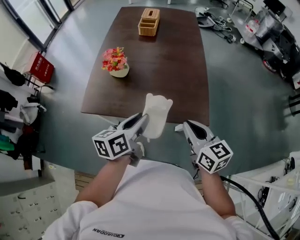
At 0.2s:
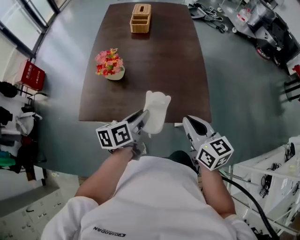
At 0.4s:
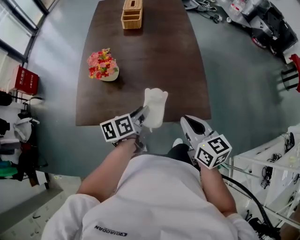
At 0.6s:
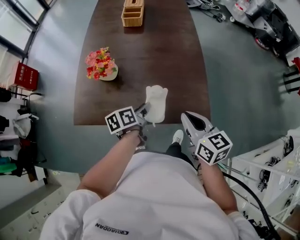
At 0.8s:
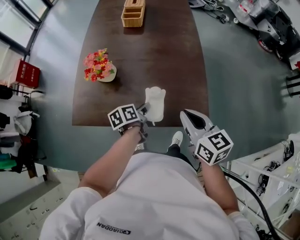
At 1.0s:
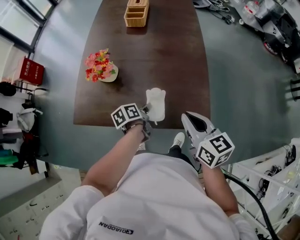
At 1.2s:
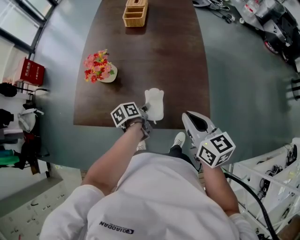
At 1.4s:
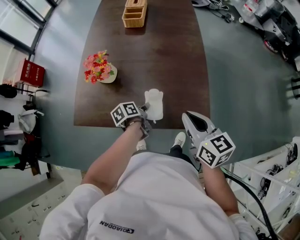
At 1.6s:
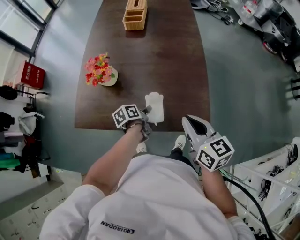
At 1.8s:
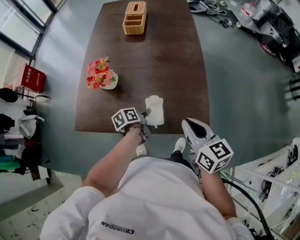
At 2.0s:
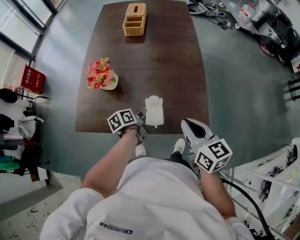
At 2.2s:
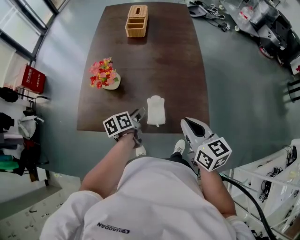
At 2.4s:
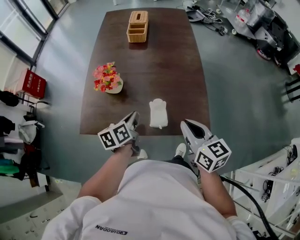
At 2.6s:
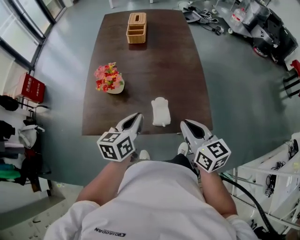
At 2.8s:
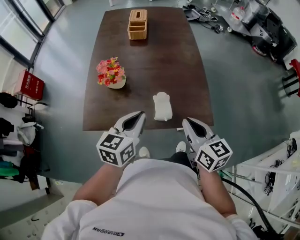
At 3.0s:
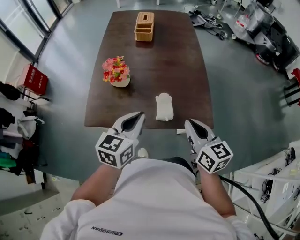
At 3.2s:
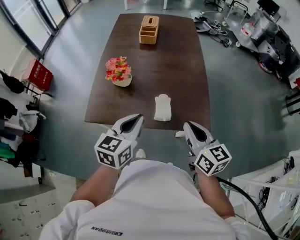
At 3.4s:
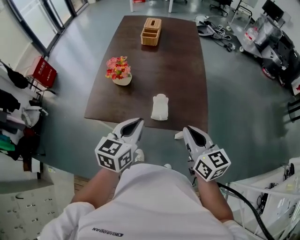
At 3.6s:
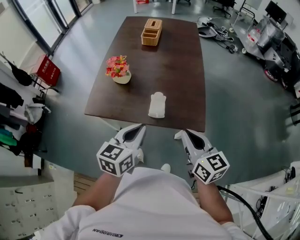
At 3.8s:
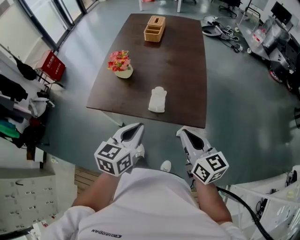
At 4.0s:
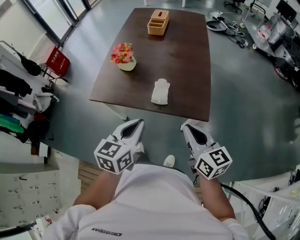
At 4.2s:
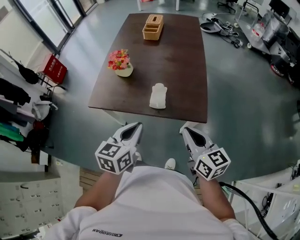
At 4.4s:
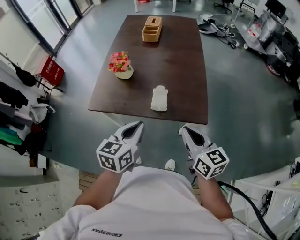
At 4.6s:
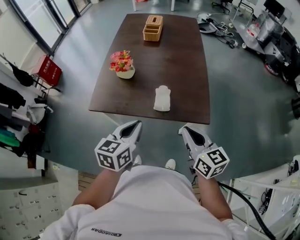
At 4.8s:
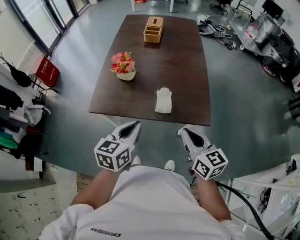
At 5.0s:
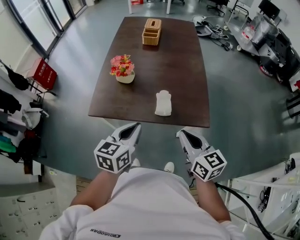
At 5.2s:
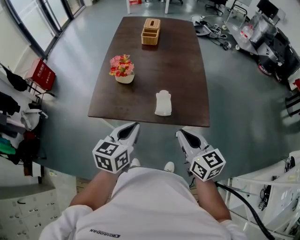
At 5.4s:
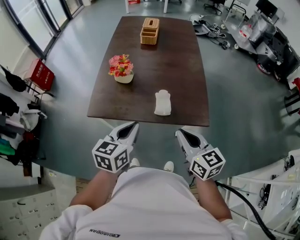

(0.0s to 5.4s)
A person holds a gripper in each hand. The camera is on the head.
0.0s - 1.4s: The left gripper heads downward and forward, covering some 25 cm, and rotates roughly 40 degrees; the right gripper goes approximately 10 cm forward.
1.4s - 2.8s: The right gripper moves some 5 cm; the left gripper is displaced upward by about 25 cm, twists roughly 60 degrees clockwise, seen from behind, and closes.
2.8s - 4.0s: The right gripper travels backward and to the right by about 10 cm; the left gripper shifts approximately 15 cm backward.
4.0s - 5.4s: Both grippers travel together to the left, some 10 cm.

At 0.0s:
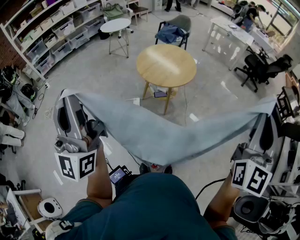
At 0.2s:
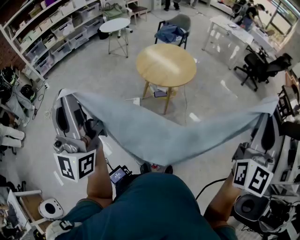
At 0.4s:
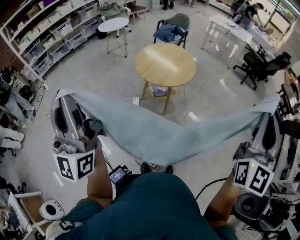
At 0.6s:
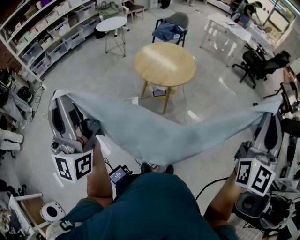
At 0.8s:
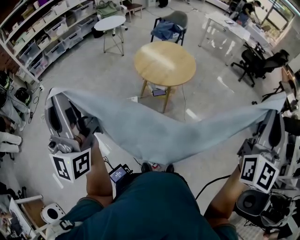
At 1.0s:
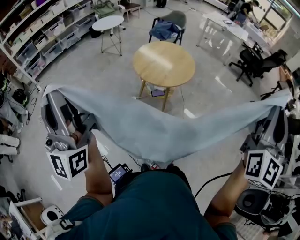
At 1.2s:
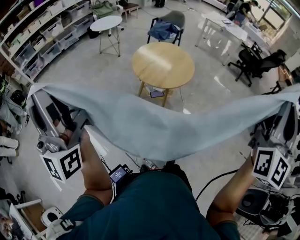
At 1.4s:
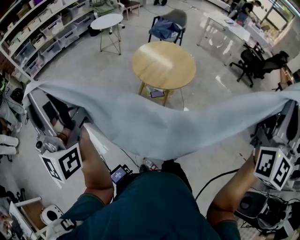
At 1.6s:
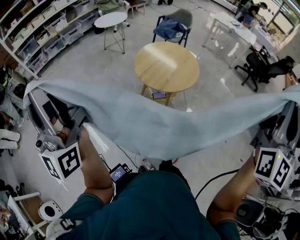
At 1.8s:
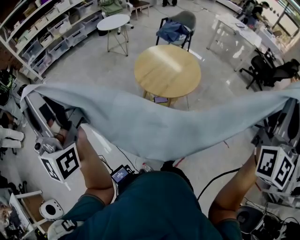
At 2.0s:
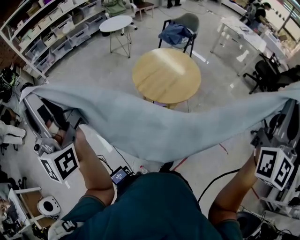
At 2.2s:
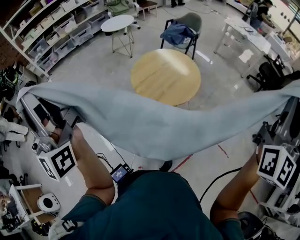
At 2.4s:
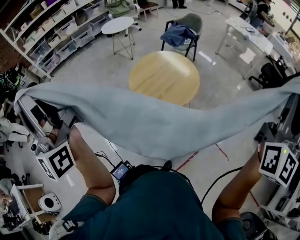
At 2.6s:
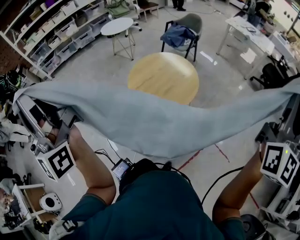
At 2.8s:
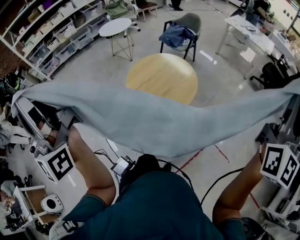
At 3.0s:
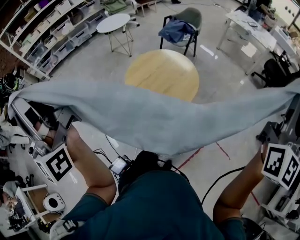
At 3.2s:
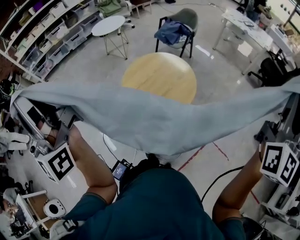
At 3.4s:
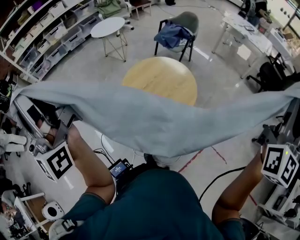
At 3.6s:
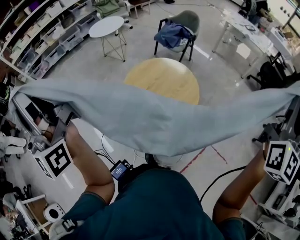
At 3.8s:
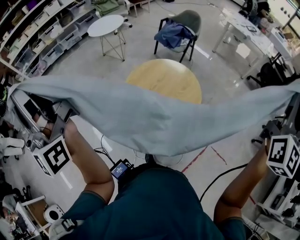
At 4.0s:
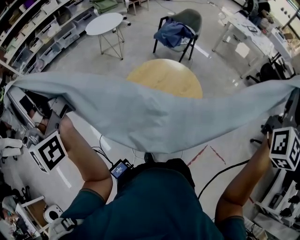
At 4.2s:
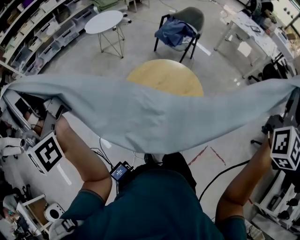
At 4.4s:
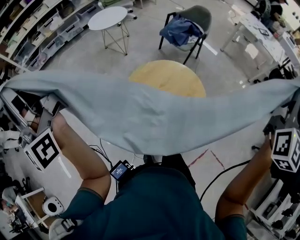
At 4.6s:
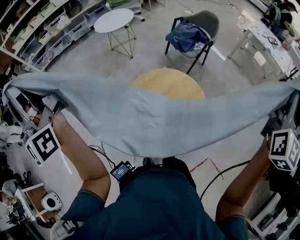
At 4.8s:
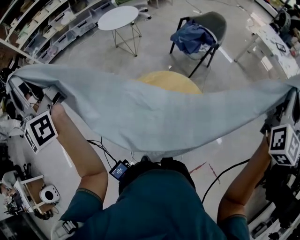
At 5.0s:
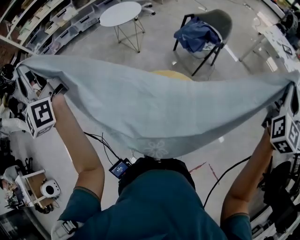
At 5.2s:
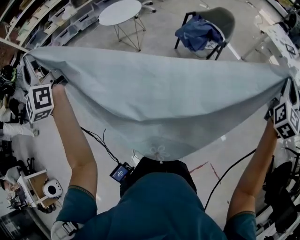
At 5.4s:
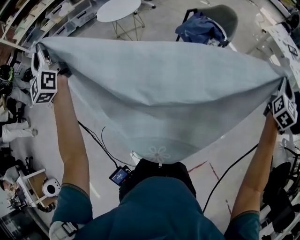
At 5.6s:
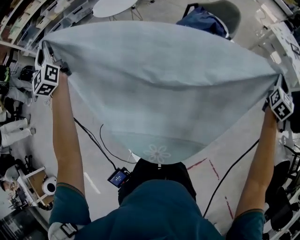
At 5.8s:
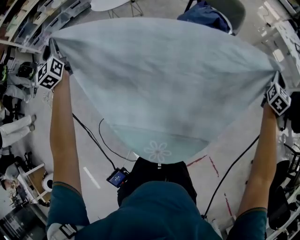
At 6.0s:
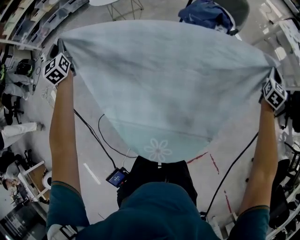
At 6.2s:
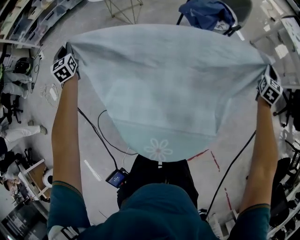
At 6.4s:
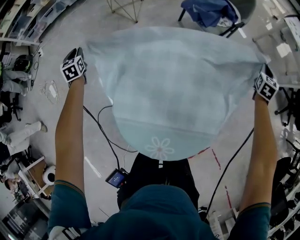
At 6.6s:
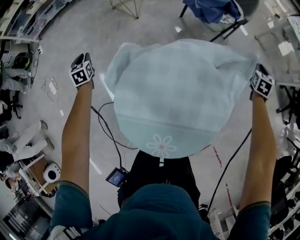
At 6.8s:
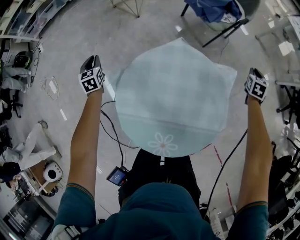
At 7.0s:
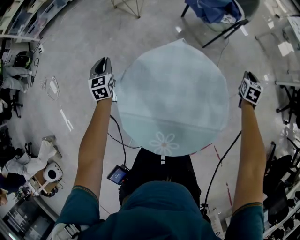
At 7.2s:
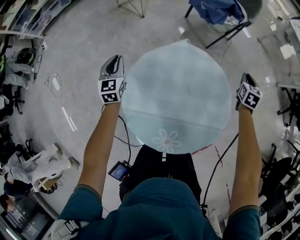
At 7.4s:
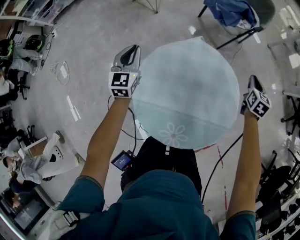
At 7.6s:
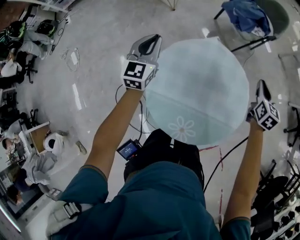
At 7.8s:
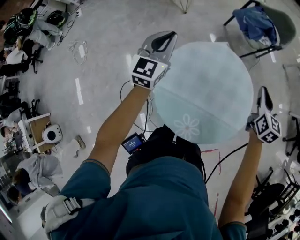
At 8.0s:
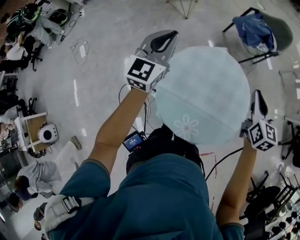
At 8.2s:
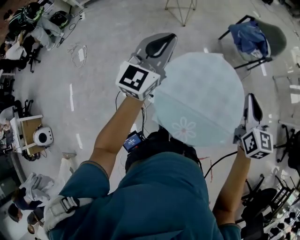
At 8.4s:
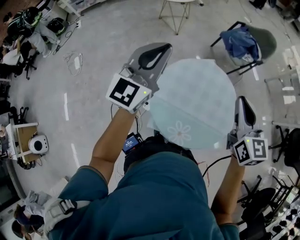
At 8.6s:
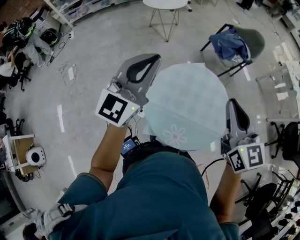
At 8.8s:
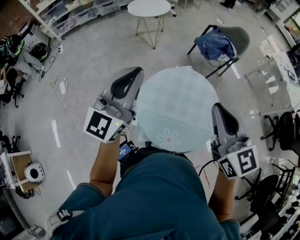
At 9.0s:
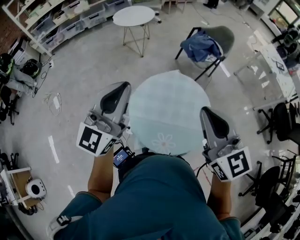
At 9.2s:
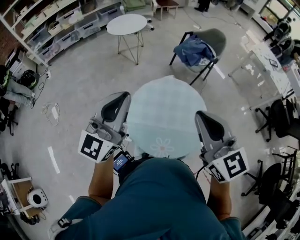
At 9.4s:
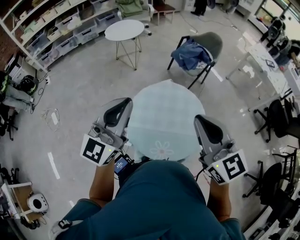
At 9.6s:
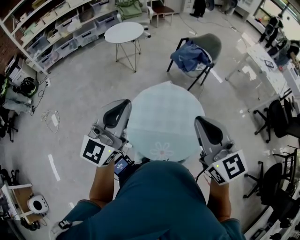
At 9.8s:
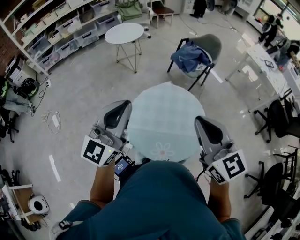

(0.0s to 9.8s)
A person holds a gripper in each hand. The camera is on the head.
0.0s - 1.4s: The right gripper travels forward and upward by approximately 10 cm, while the left gripper heads to the left and forward, covering roughly 10 cm.
1.4s - 2.8s: The right gripper is displaced forward and to the right by roughly 35 cm. The left gripper travels to the right and forward by approximately 25 cm.
2.8s - 4.2s: The left gripper travels forward and to the left by approximately 30 cm; the right gripper is displaced forward by roughly 30 cm.
4.2s - 5.6s: The two grippers travel together, forward, some 50 cm. Both grippers travel together downward, some 30 cm. The left gripper tilts its fingers roughly 40 degrees downward, while the right gripper tilts its fingers roughly 30 degrees downward.
5.6s - 7.0s: The right gripper is displaced downward and to the left by some 35 cm, and tilts its fingers about 30 degrees downward, while the left gripper goes about 40 cm downward, and angles its fingers downward, by about 40 degrees.
7.0s - 8.4s: The left gripper moves upward and backward, roughly 40 cm, and tilts its fingers approximately 30 degrees upward; the right gripper heads upward, to the left and backward, covering about 60 cm, and tilts its fingers some 30 degrees upward.
8.4s - 9.8s: The right gripper heads backward and upward, covering roughly 15 cm. The left gripper goes some 10 cm backward, to the right and upward.

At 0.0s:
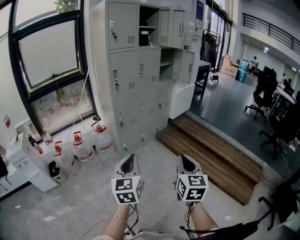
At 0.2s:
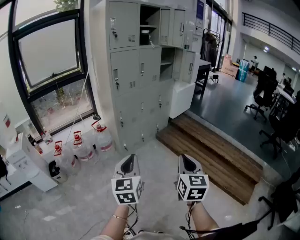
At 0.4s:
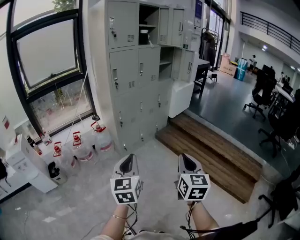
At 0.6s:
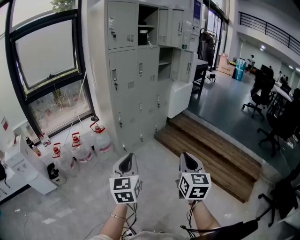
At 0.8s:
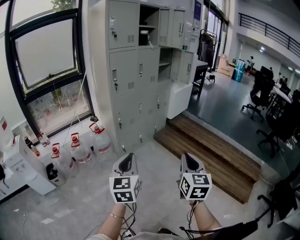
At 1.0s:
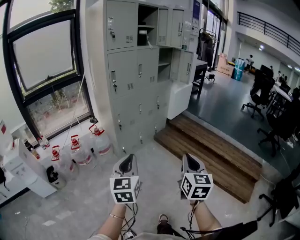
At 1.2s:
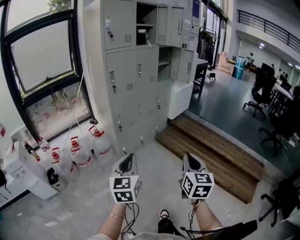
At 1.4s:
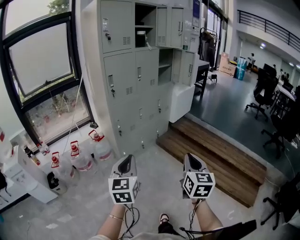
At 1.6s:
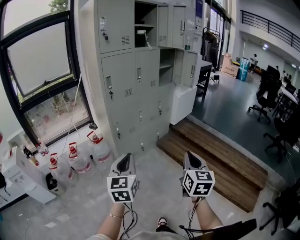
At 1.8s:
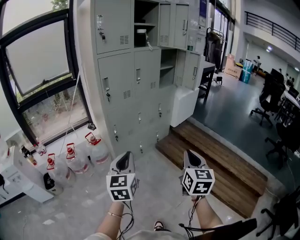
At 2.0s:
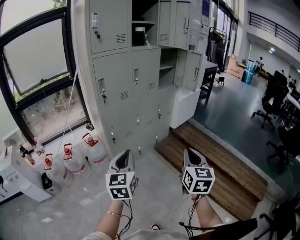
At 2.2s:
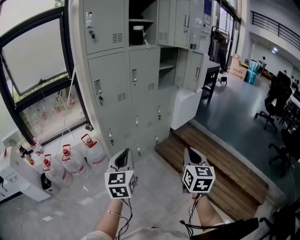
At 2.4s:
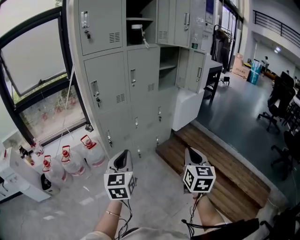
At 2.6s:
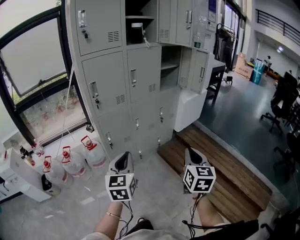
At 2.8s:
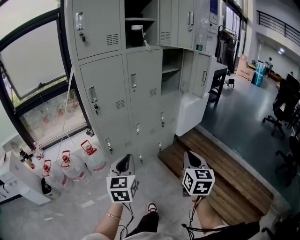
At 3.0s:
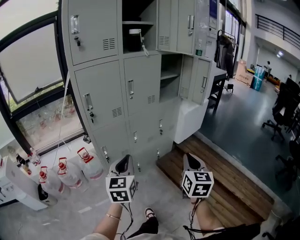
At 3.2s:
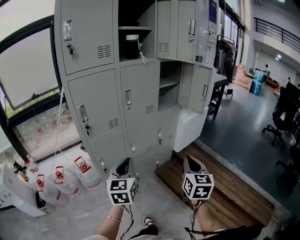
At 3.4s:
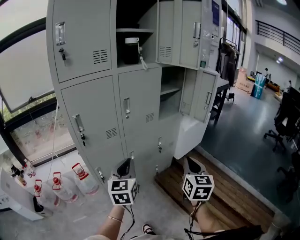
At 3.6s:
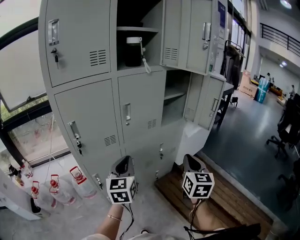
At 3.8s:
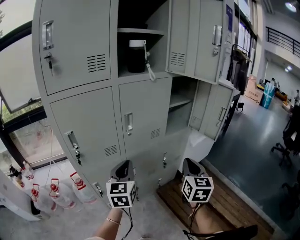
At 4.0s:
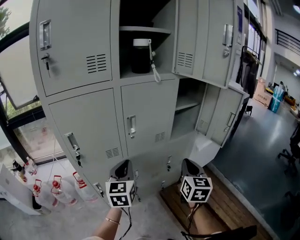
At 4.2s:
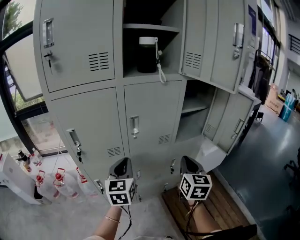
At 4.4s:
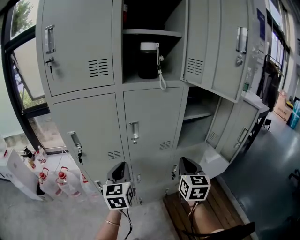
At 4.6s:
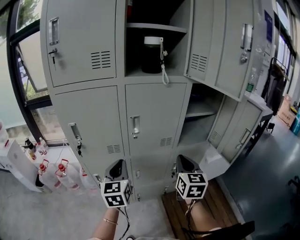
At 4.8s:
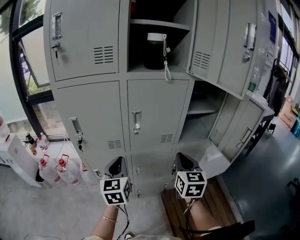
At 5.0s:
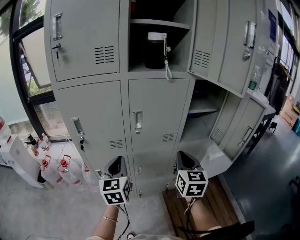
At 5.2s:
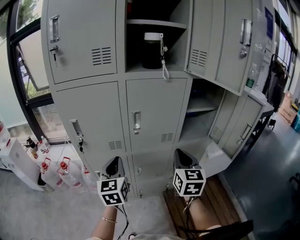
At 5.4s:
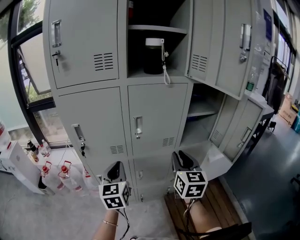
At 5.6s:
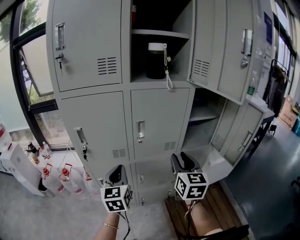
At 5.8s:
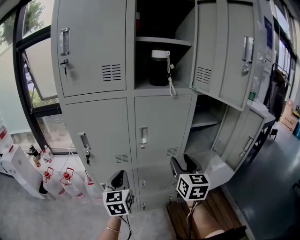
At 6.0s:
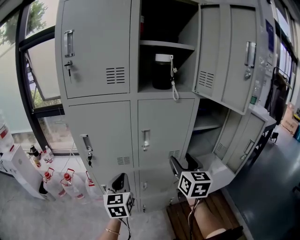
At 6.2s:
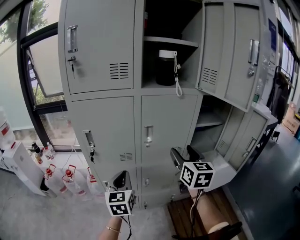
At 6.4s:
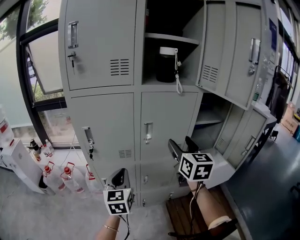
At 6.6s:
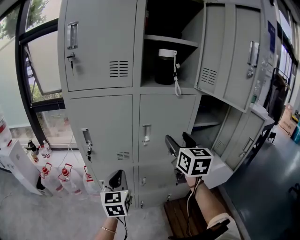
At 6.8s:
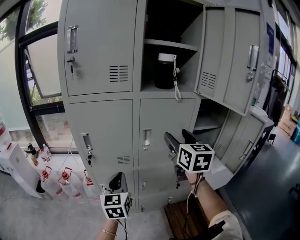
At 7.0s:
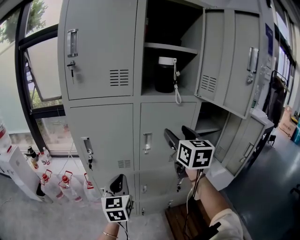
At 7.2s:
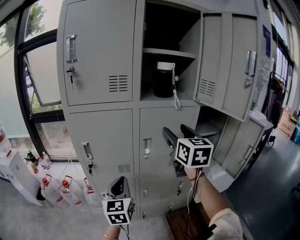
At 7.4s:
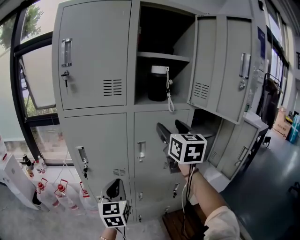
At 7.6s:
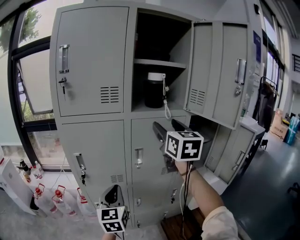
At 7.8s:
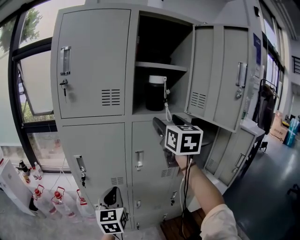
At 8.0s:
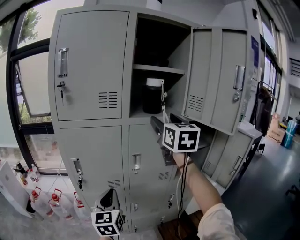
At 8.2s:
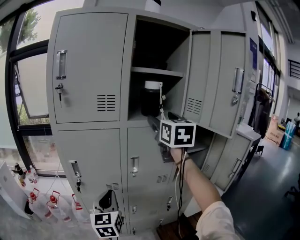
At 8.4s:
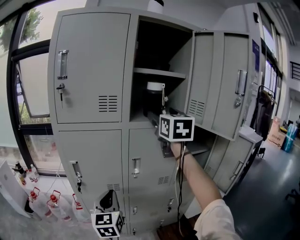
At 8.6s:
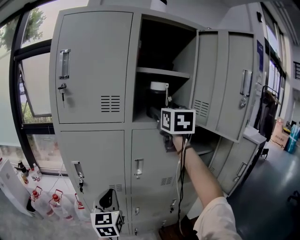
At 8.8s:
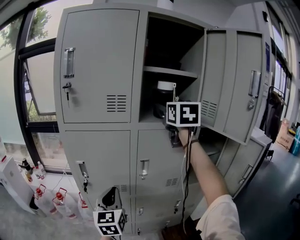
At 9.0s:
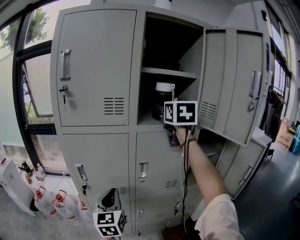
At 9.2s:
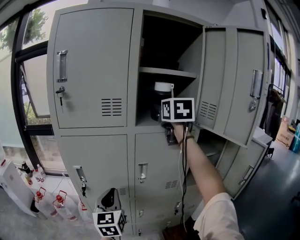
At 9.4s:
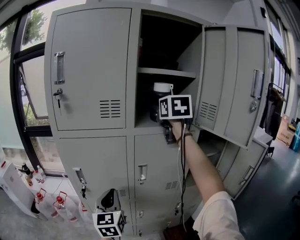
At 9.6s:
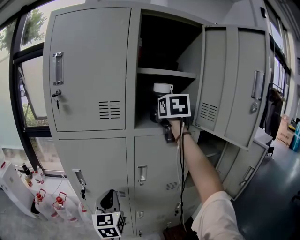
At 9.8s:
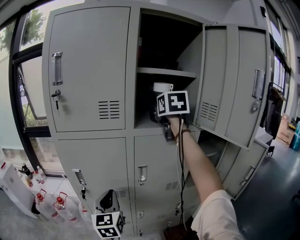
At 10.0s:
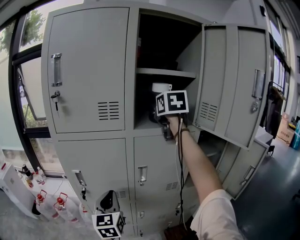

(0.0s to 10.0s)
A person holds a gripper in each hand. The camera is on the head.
0.0s - 1.4s: Both grippers move forward, about 10 cm.
1.4s - 2.8s: The grippers both shift forward by approximately 30 cm.
2.8s - 4.2s: Both grippers travel together forward, approximately 40 cm.
4.2s - 5.8s: The right gripper moves approximately 10 cm, and opens its fingers.
5.8s - 7.2s: The right gripper is displaced upward and forward by roughly 15 cm.
7.2s - 8.6s: The right gripper moves upward and forward, approximately 15 cm.
8.6s - 10.0s: The right gripper shifts some 10 cm forward.
